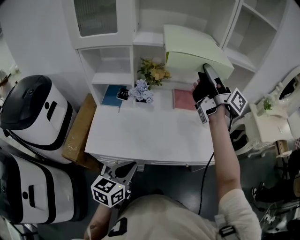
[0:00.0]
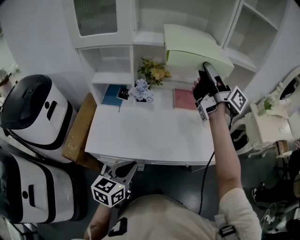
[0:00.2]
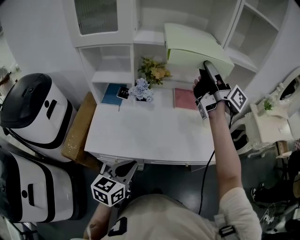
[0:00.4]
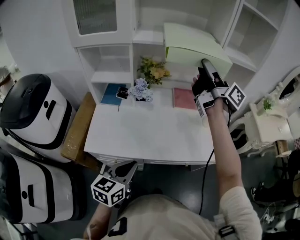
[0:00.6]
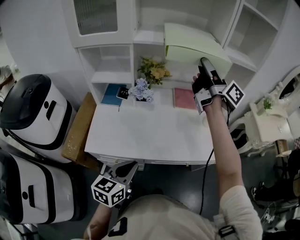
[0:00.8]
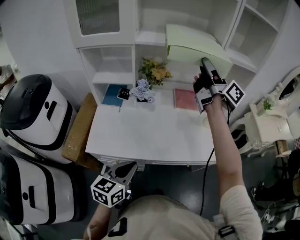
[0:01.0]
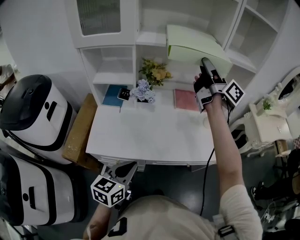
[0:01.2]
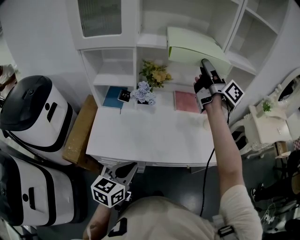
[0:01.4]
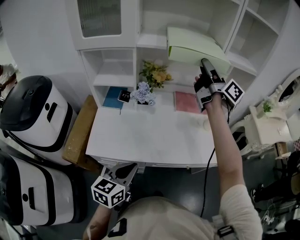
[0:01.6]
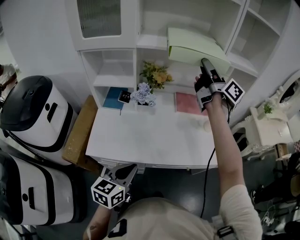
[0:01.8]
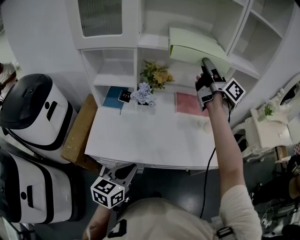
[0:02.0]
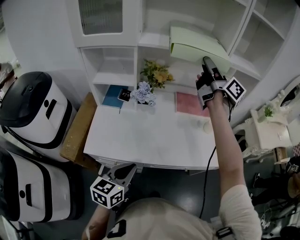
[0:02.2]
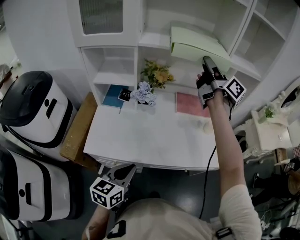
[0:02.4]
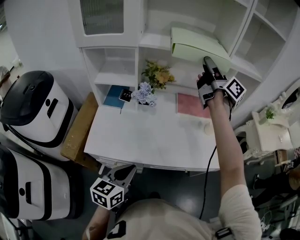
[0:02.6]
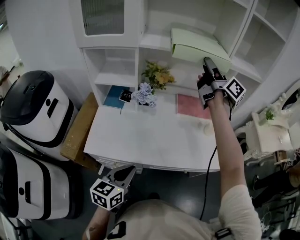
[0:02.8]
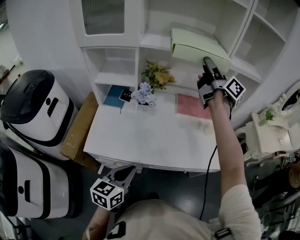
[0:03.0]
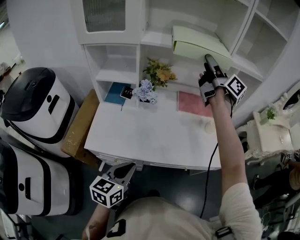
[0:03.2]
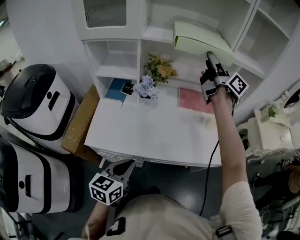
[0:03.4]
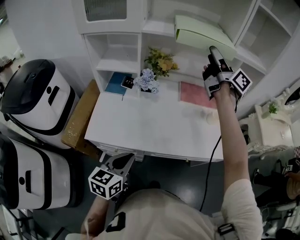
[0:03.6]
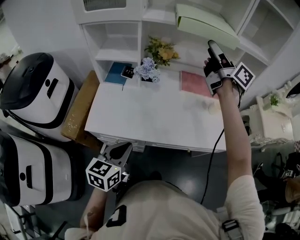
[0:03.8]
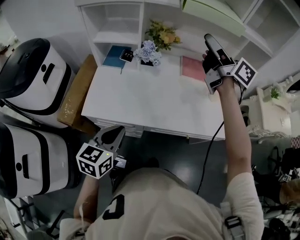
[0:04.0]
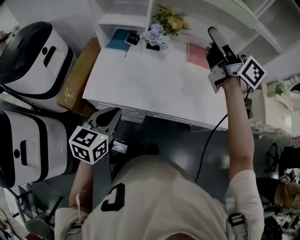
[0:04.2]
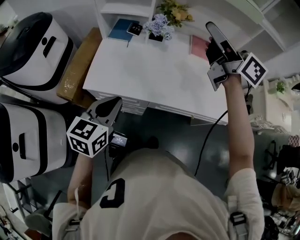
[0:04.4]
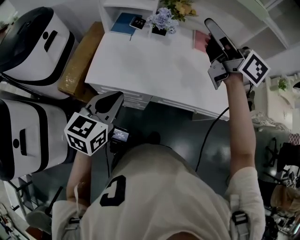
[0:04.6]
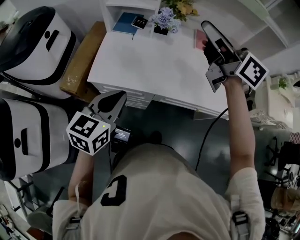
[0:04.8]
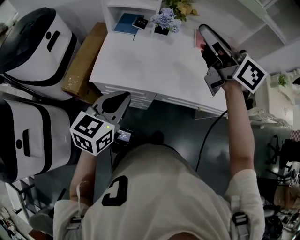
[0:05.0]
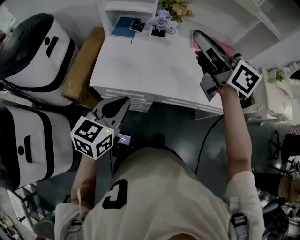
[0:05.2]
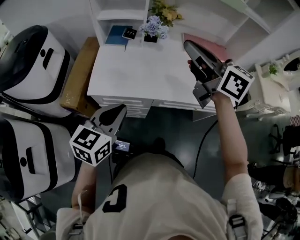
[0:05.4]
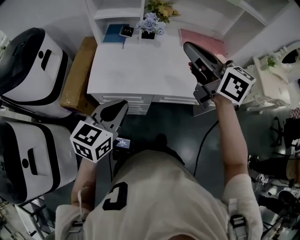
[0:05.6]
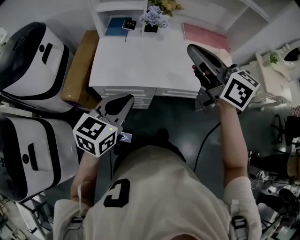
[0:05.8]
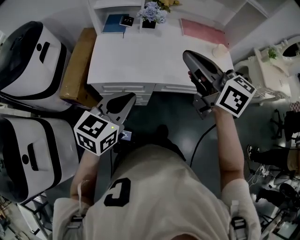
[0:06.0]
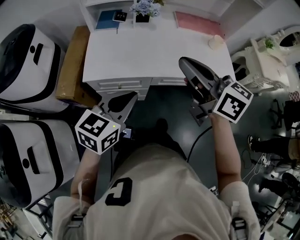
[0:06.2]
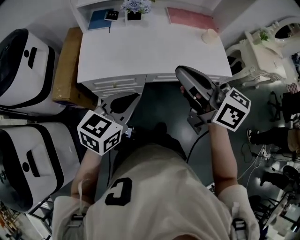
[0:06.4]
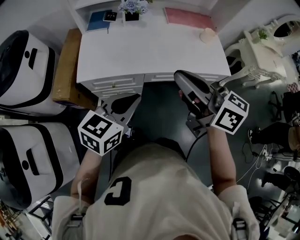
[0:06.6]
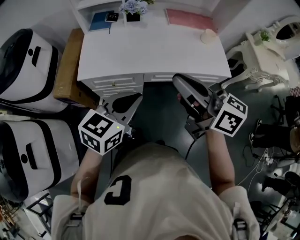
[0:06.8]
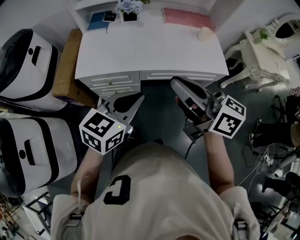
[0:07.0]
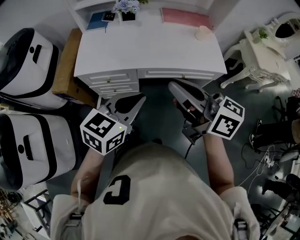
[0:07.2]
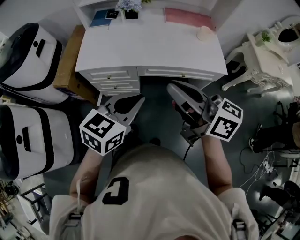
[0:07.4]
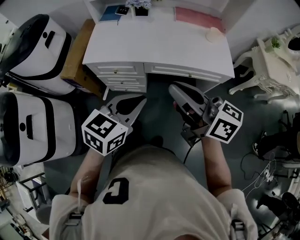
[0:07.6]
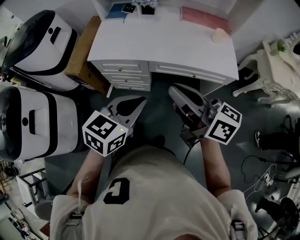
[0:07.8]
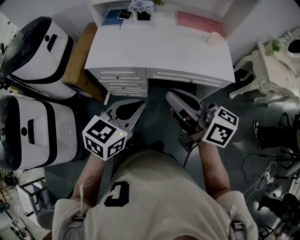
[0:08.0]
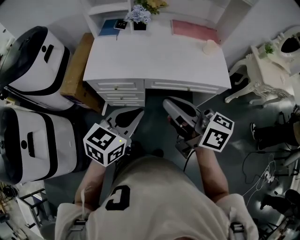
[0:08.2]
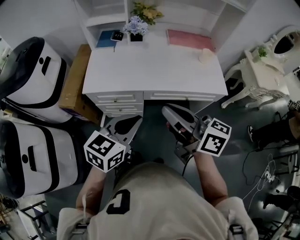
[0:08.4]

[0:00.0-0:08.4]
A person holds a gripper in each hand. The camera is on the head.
0.0 to 1.4 s: The right gripper is displaced forward by some 5 cm.
1.4 to 2.8 s: The grippers move only a little.
2.8 to 4.2 s: The right gripper heads backward and to the left, covering roughly 15 cm, and turns by approximately 30 degrees; the left gripper moves to the left, about 5 cm.
4.2 to 5.6 s: The right gripper goes about 20 cm backward and to the left, and closes. Meanwhile the left gripper shifts by approximately 5 cm.
5.6 to 7.0 s: The left gripper moves to the right and backward, some 15 cm. The right gripper moves backward, approximately 20 cm.

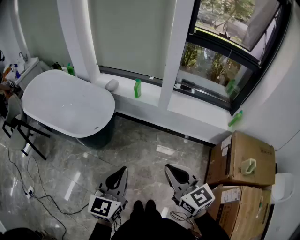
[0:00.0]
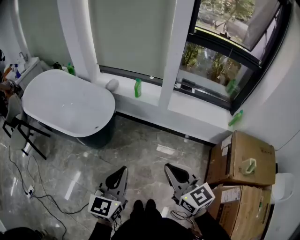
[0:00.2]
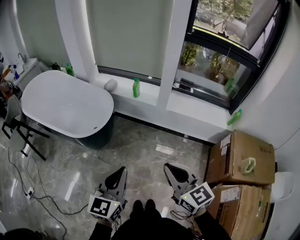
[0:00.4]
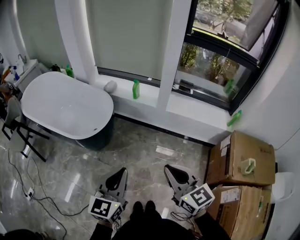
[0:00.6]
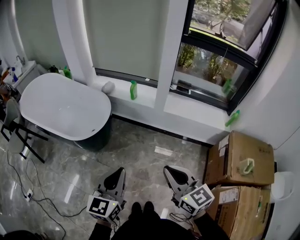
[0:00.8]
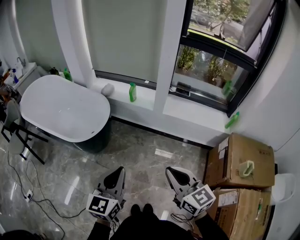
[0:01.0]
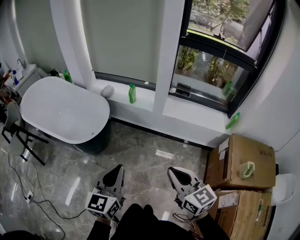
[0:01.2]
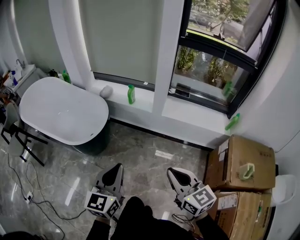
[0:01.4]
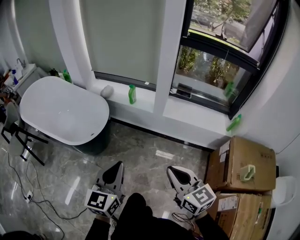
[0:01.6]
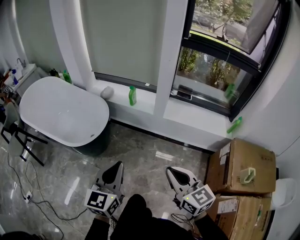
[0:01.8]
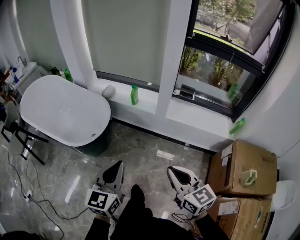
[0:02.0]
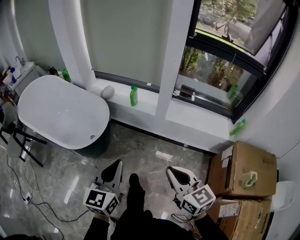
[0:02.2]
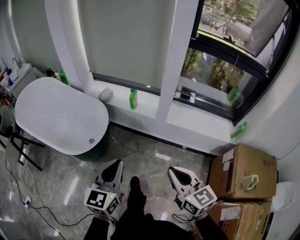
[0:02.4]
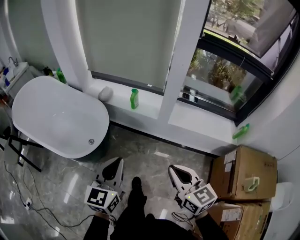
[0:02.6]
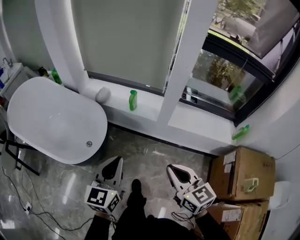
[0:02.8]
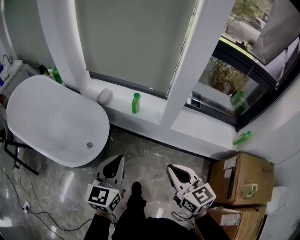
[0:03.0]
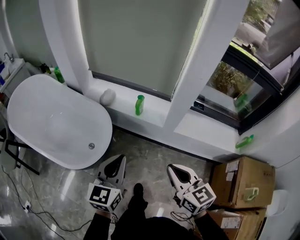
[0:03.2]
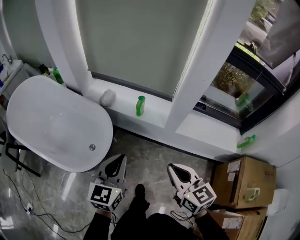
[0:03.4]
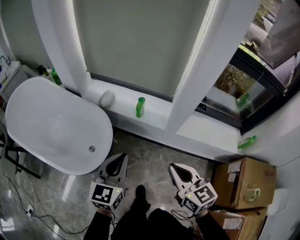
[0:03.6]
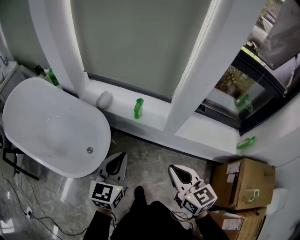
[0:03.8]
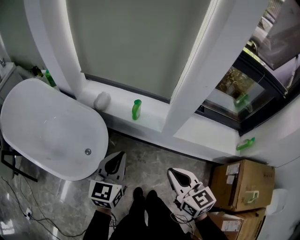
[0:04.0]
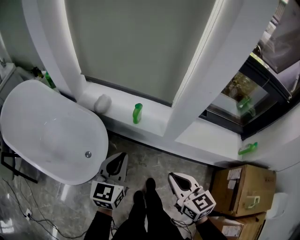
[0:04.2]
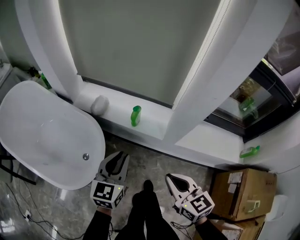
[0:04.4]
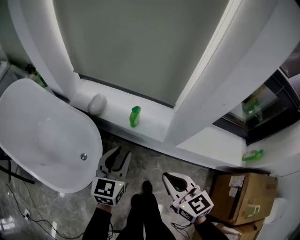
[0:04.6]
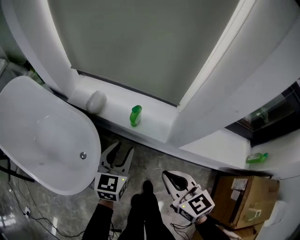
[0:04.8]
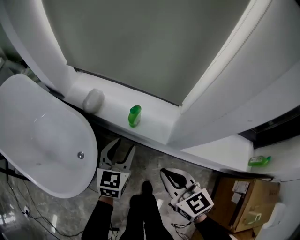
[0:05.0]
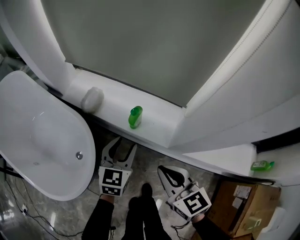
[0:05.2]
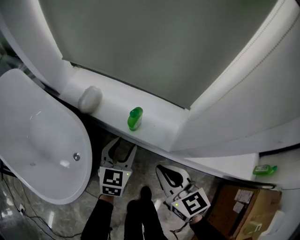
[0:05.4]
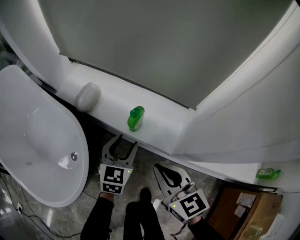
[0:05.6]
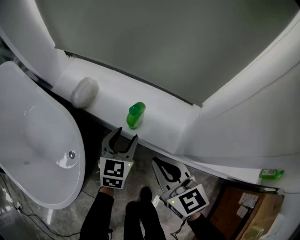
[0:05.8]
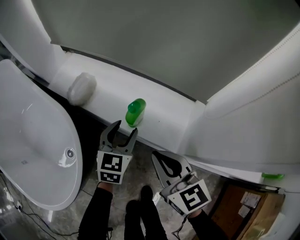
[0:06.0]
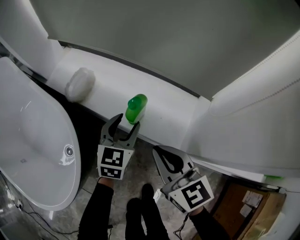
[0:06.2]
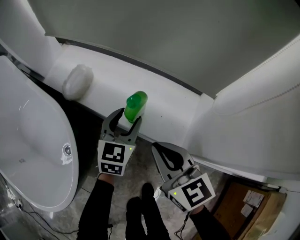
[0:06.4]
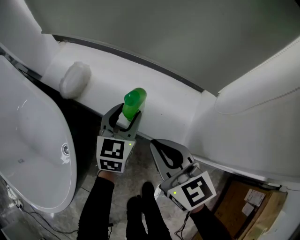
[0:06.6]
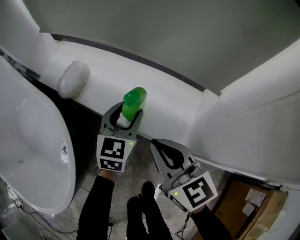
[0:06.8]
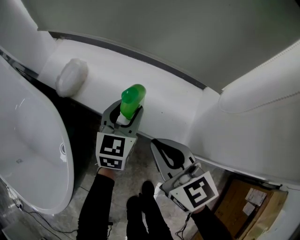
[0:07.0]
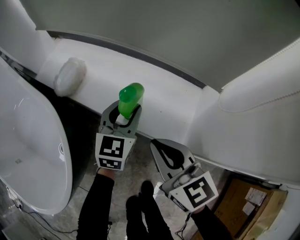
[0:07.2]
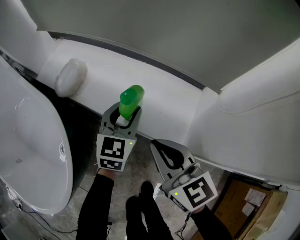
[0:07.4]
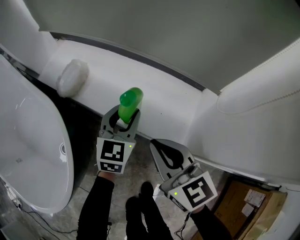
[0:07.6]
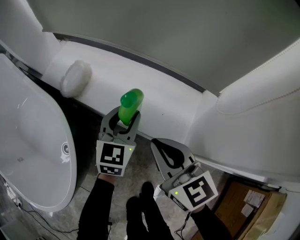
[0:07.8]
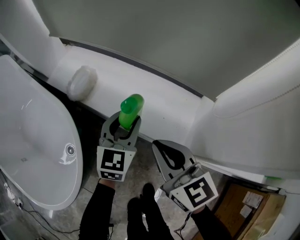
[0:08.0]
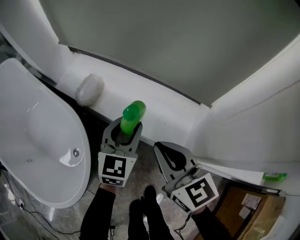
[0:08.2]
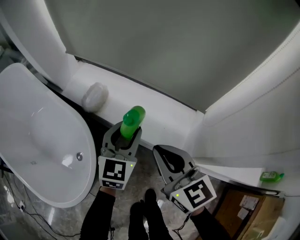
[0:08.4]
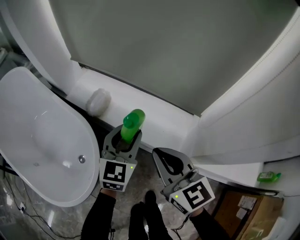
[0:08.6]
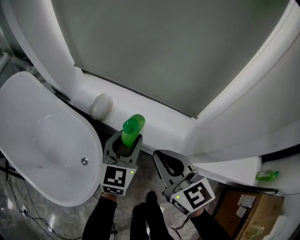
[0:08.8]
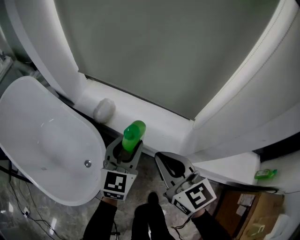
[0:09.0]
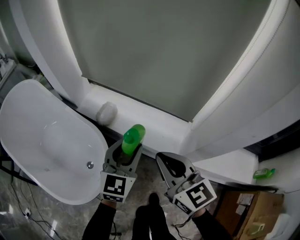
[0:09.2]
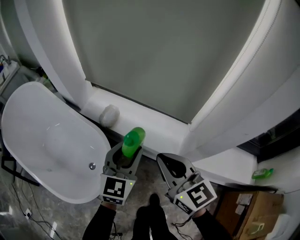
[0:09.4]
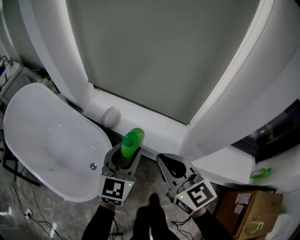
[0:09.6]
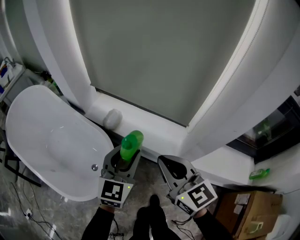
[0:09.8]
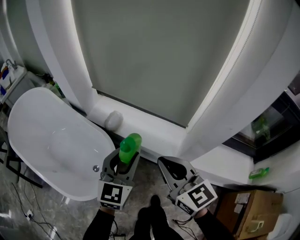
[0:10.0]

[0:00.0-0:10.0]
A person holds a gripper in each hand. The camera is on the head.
0.0 to 1.4 s: The left gripper changes place by about 5 cm, while the right gripper is displaced to the right by approximately 5 cm.
1.4 to 2.8 s: The grippers both shift forward by roughly 20 cm.
2.8 to 4.2 s: The two grippers go approximately 15 cm forward.
4.2 to 5.8 s: The right gripper is displaced forward and downward by about 35 cm. Meanwhile the left gripper heads downward and forward, covering roughly 40 cm, and opens its fingers.
5.8 to 7.2 s: The left gripper is displaced forward by about 5 cm; the right gripper shifts some 5 cm downward.
7.2 to 8.6 s: Both grippers move upward, roughly 20 cm.
8.6 to 10.0 s: Both grippers move upward and backward, some 20 cm.

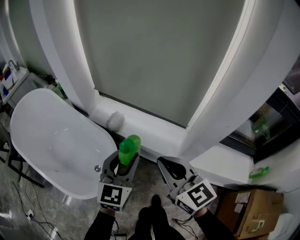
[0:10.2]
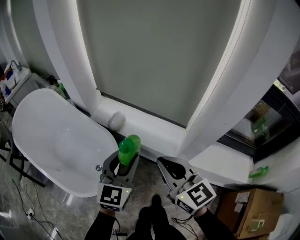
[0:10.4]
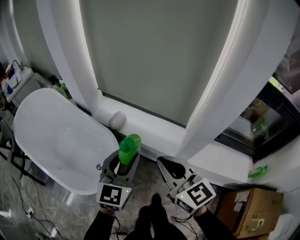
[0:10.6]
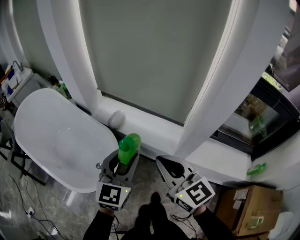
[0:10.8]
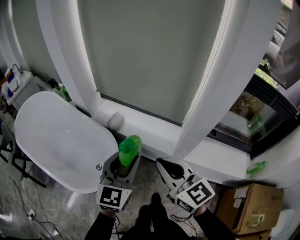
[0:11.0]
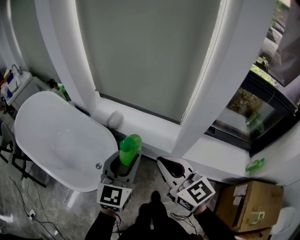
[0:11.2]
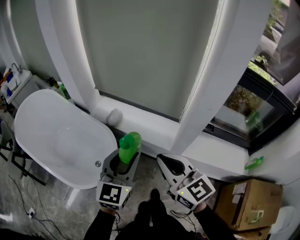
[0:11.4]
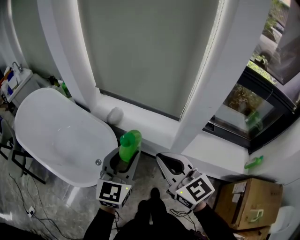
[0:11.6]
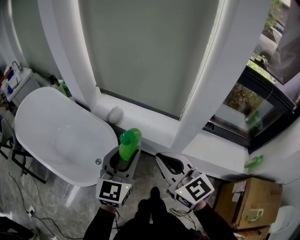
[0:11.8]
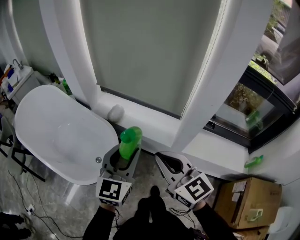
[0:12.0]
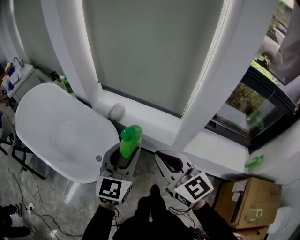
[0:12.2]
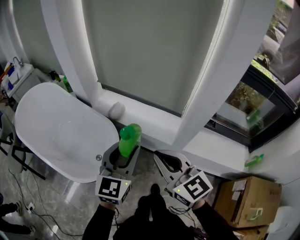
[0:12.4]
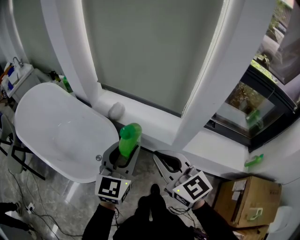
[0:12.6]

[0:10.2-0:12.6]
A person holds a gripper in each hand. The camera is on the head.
10.2 to 11.4 s: The two grippers go approximately 10 cm backward.
11.4 to 12.6 s: There are only small adjustments of the grippers.

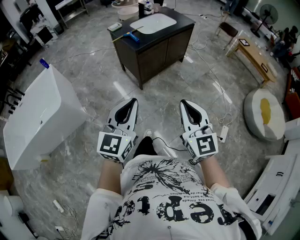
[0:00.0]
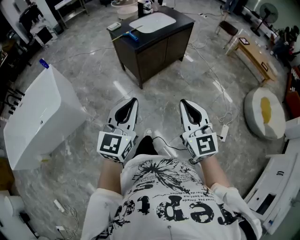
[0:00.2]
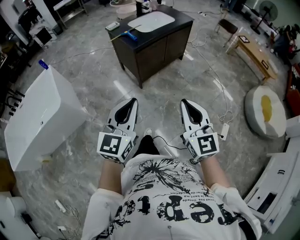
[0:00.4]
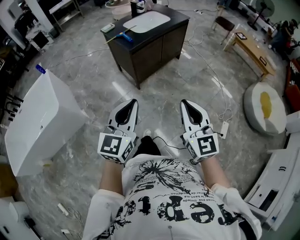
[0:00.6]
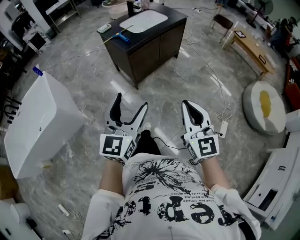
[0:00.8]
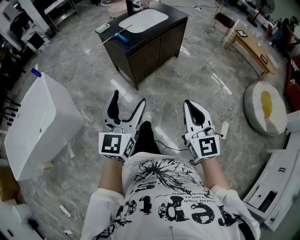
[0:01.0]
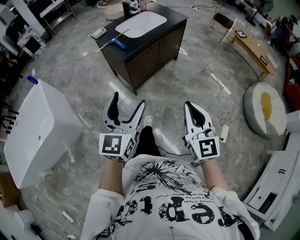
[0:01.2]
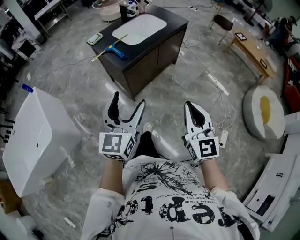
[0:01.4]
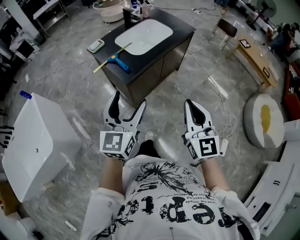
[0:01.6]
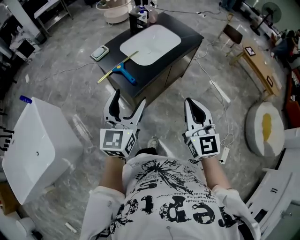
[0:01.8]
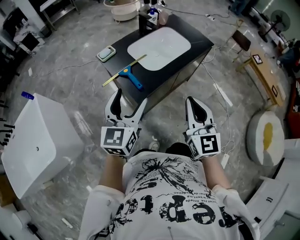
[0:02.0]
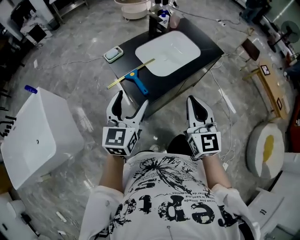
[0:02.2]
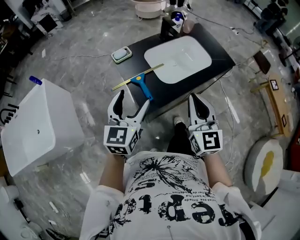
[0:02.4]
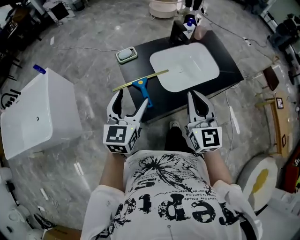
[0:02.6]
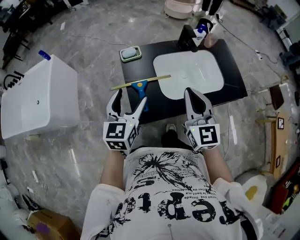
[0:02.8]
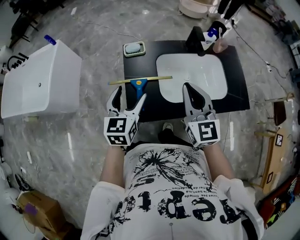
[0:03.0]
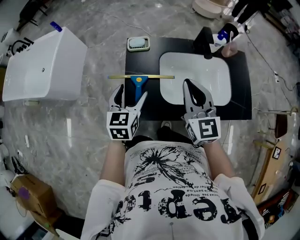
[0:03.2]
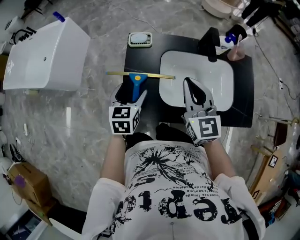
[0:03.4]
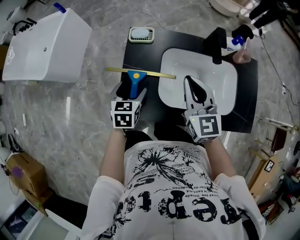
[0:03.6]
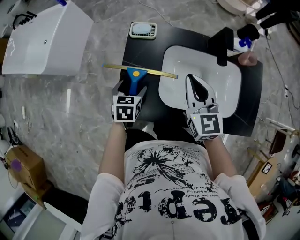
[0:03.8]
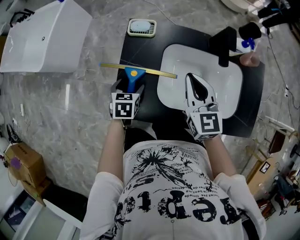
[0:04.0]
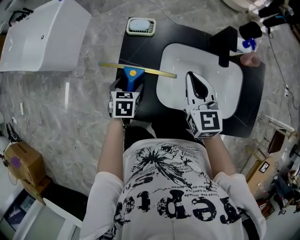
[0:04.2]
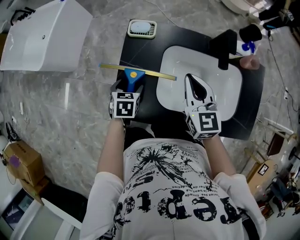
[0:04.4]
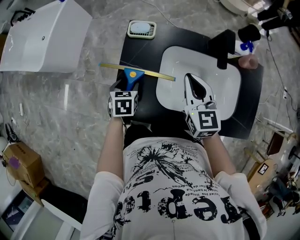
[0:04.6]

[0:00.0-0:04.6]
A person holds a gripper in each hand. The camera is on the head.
0.0 to 1.6 s: Both grippers travel together forward, approximately 40 cm. The left gripper opens its fingers.
1.6 to 3.0 s: The two grippers travel together, some 50 cm. The left gripper turns by about 40 degrees; the right gripper rotates approximately 40 degrees.
3.0 to 4.6 s: The right gripper is displaced downward and forward by about 20 cm, and turns by roughly 20 degrees. Meanwhile the left gripper is displaced downward by some 25 cm, and tips its fingers downward by approximately 40 degrees.
